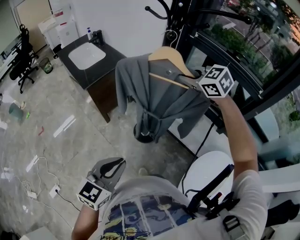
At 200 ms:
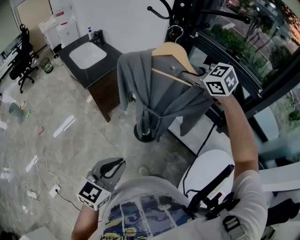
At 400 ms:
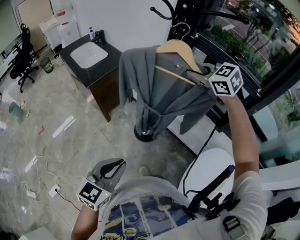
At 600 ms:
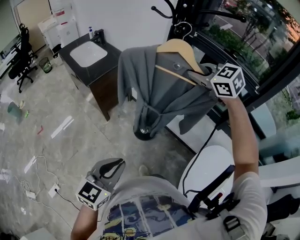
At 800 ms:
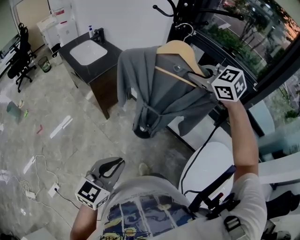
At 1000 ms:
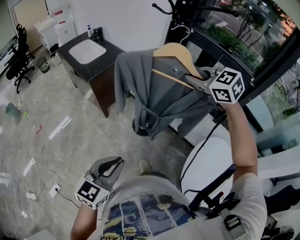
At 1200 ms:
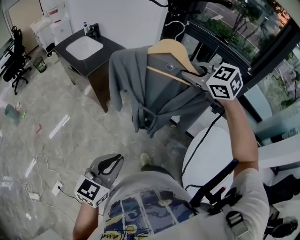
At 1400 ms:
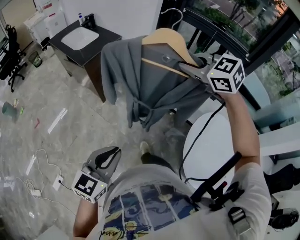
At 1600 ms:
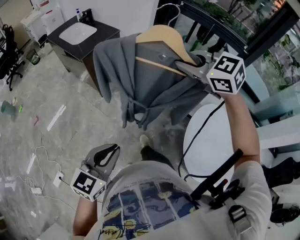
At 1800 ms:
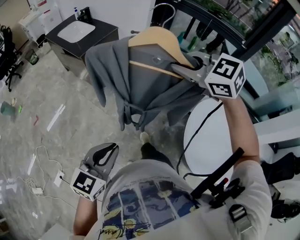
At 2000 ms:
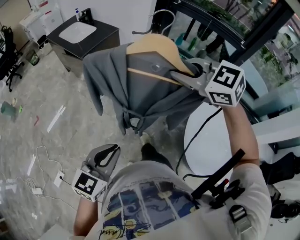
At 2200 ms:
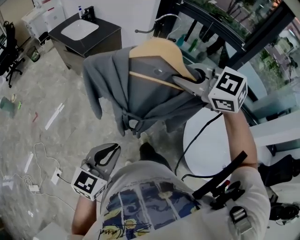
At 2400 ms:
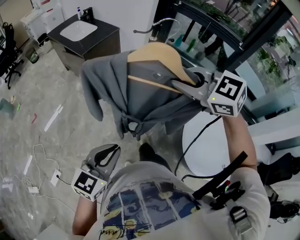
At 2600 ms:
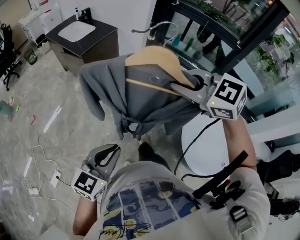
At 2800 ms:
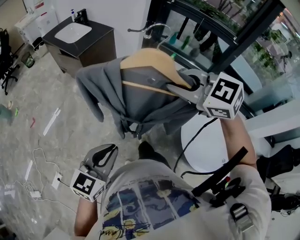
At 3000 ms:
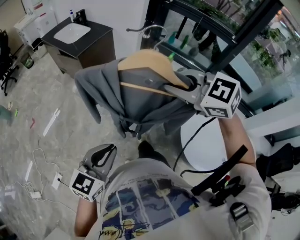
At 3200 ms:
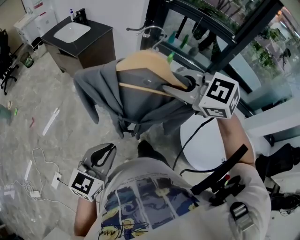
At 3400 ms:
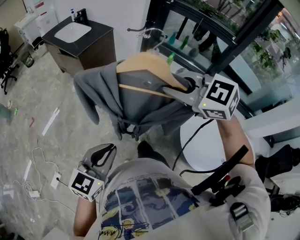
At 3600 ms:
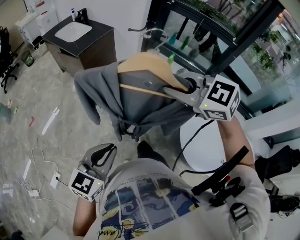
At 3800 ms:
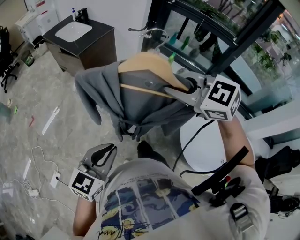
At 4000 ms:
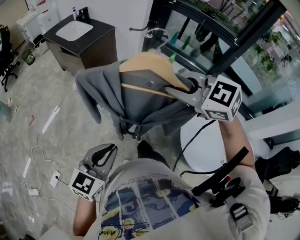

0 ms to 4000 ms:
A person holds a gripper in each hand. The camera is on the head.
0 ms to 1400 ms: The left gripper travels backward and to the left by some 15 cm. Meanwhile the right gripper moves backward, about 20 cm.
1400 ms to 2600 ms: The right gripper travels backward and to the left by approximately 20 cm; the left gripper heads backward, covering some 10 cm.
2600 ms to 4000 ms: The grippers stay close to where they were, moving slightly.

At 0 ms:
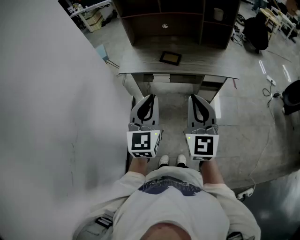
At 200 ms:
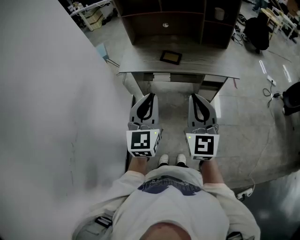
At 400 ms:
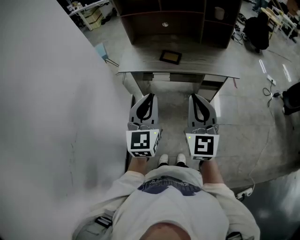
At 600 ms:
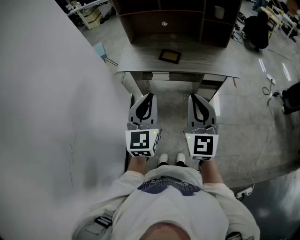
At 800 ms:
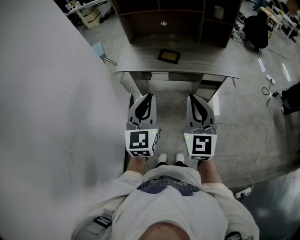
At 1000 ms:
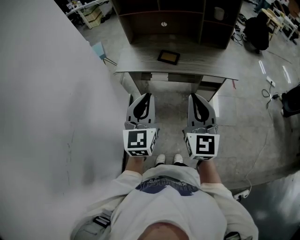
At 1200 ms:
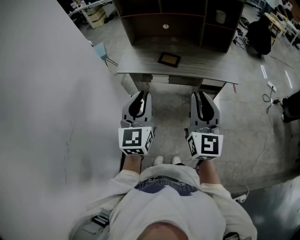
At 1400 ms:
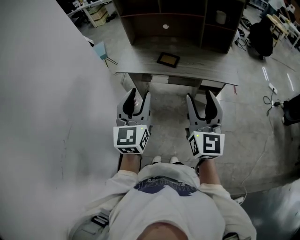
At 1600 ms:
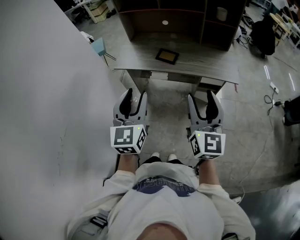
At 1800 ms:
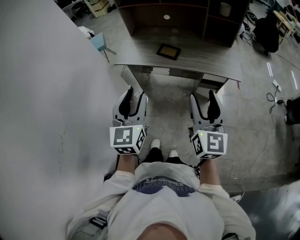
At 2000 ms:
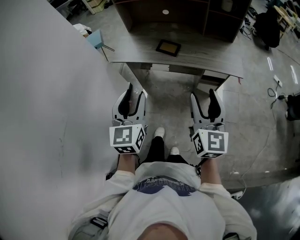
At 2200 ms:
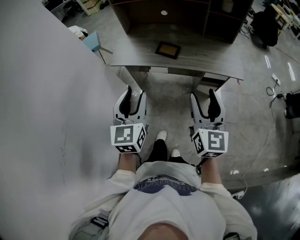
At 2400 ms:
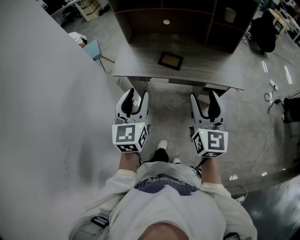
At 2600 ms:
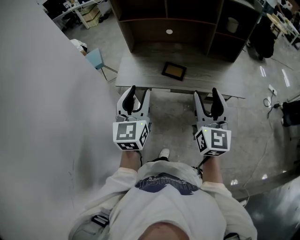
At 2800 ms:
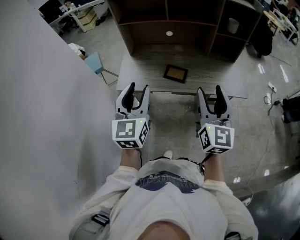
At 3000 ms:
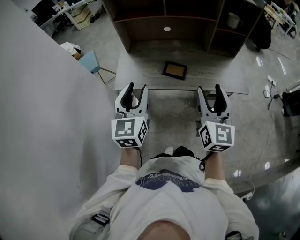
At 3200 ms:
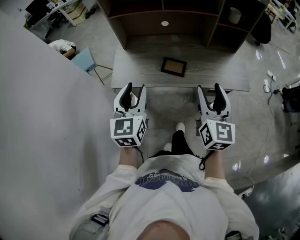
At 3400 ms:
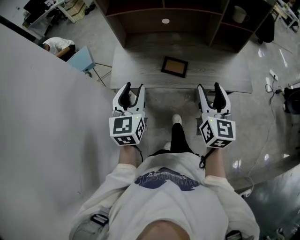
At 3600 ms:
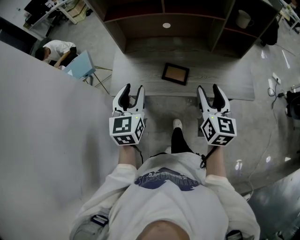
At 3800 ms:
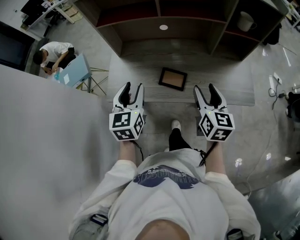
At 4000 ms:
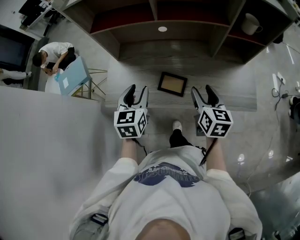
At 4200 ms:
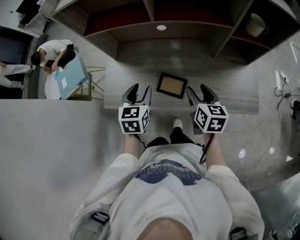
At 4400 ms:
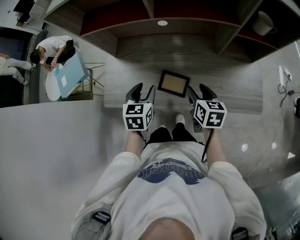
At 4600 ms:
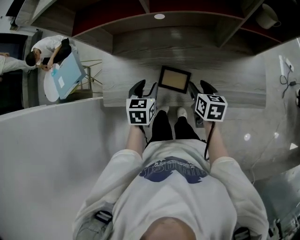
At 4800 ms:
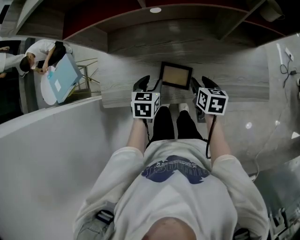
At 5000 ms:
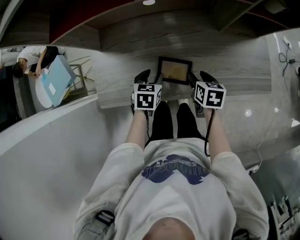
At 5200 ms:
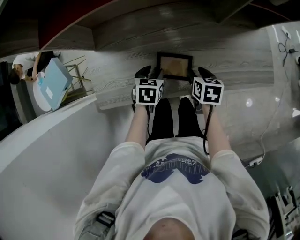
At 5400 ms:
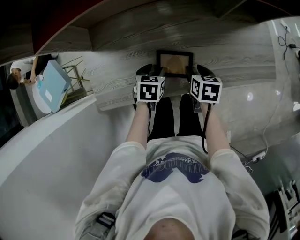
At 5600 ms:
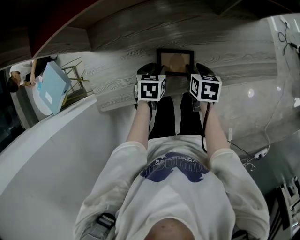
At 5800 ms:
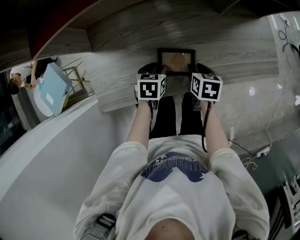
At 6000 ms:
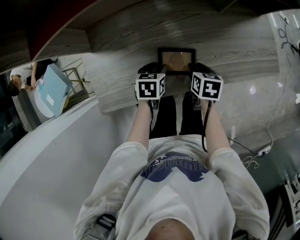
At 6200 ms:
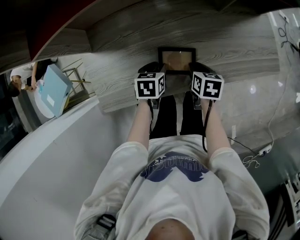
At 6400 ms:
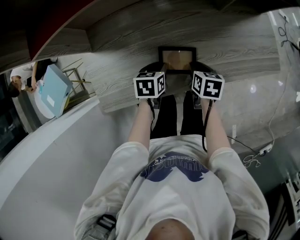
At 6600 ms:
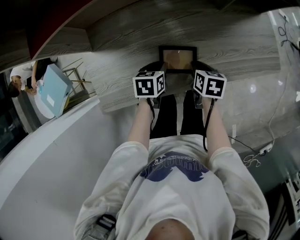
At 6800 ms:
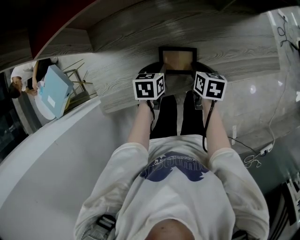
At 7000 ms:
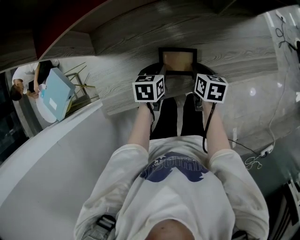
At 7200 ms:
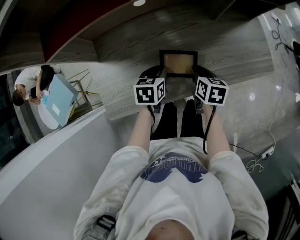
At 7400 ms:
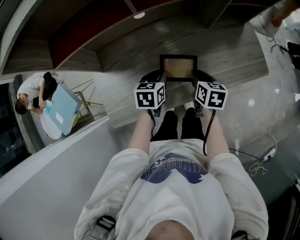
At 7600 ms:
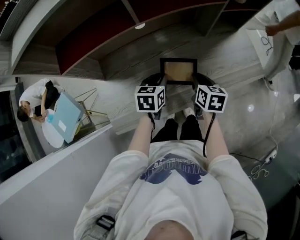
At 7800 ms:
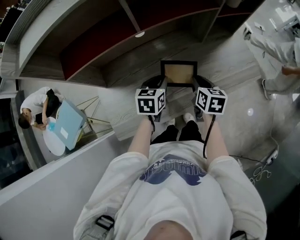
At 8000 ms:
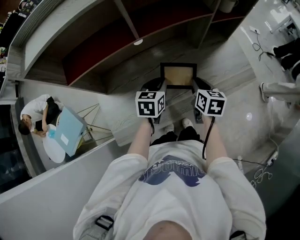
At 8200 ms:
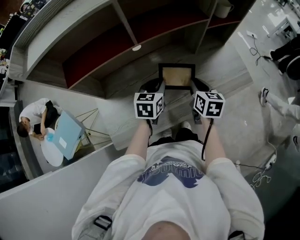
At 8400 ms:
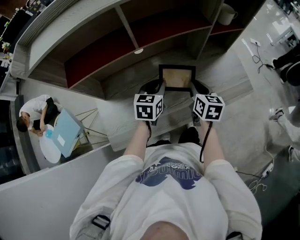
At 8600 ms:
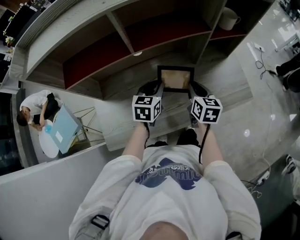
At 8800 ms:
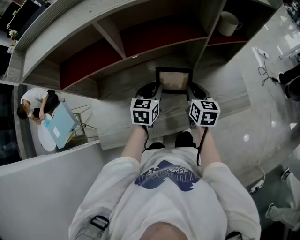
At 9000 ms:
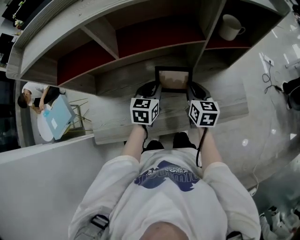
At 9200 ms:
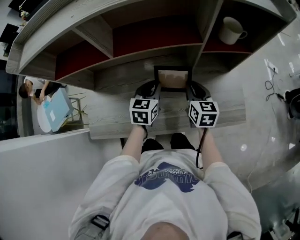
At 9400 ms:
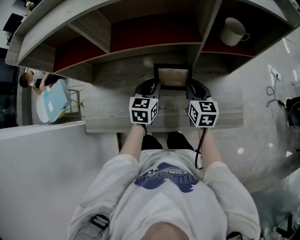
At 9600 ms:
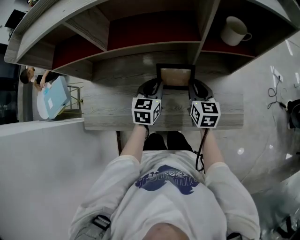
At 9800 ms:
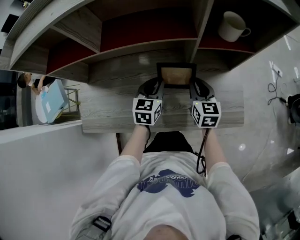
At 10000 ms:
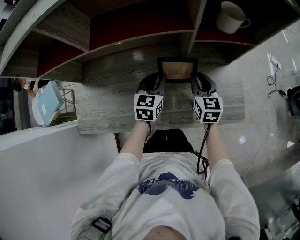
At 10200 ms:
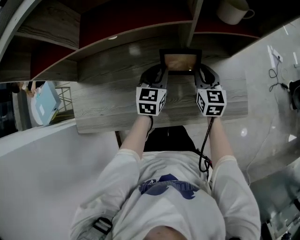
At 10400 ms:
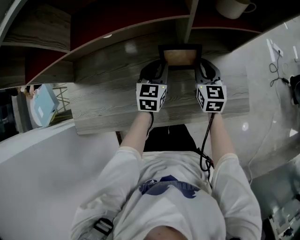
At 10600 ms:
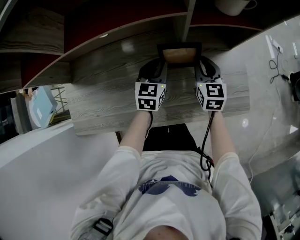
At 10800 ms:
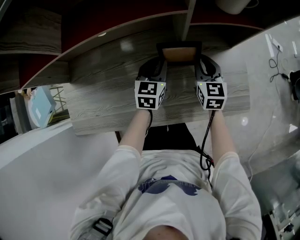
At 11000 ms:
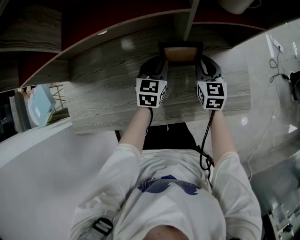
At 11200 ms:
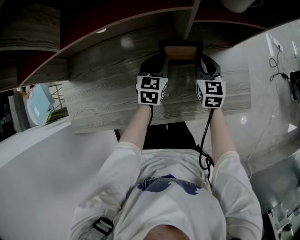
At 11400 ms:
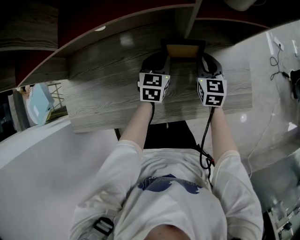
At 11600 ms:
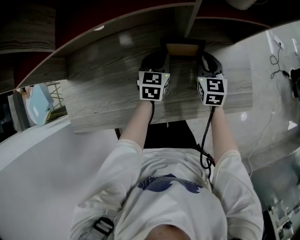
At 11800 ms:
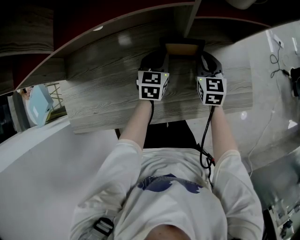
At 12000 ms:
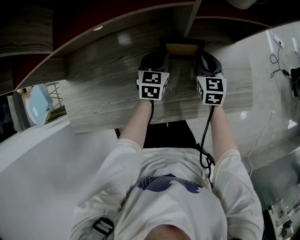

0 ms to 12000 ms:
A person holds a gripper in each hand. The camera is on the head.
0 ms to 1600 ms: The right gripper heads to the right, covering roughly 10 cm, and opens. The left gripper opens up.
1600 ms to 3000 ms: Both grippers travel together forward and to the left, about 25 cm.
3000 ms to 4400 ms: The two grippers go about 35 cm forward and downward. The left gripper points its fingers roughly 30 degrees further downward. Meanwhile the right gripper tilts its fingers approximately 40 degrees downward.
4400 ms to 6000 ms: Both grippers travel together downward, approximately 20 cm. The left gripper rotates approximately 30 degrees; the right gripper turns by approximately 30 degrees, and closes its fingers.
6000 ms to 7600 ms: Both grippers move upward, some 10 cm. The left gripper closes its fingers.
7600 ms to 9000 ms: Both grippers travel together forward, to the right and upward, some 15 cm. The right gripper swivels approximately 20 degrees.
9000 ms to 10400 ms: The right gripper moves to the right, downward and forward, some 15 cm, while the left gripper heads to the right and downward, covering some 15 cm.
10400 ms to 12000 ms: Both grippers move downward, some 5 cm.

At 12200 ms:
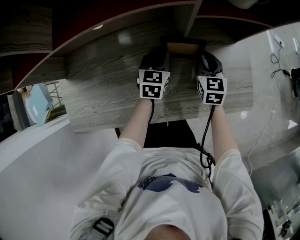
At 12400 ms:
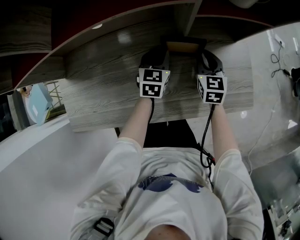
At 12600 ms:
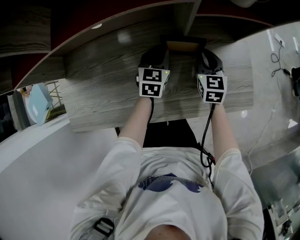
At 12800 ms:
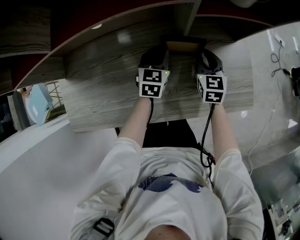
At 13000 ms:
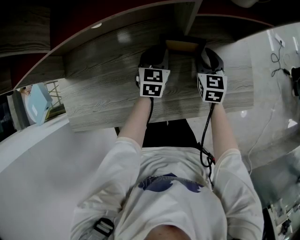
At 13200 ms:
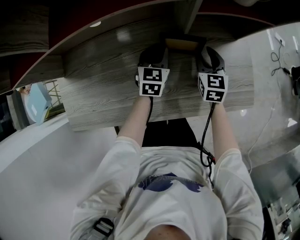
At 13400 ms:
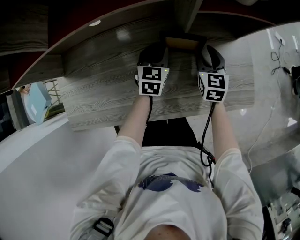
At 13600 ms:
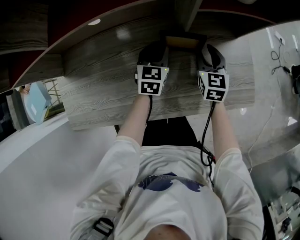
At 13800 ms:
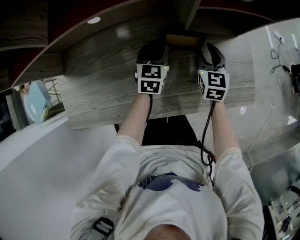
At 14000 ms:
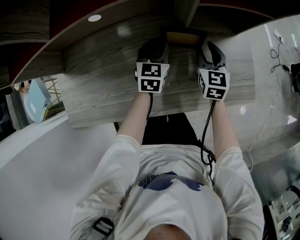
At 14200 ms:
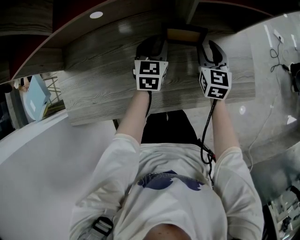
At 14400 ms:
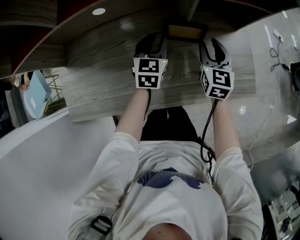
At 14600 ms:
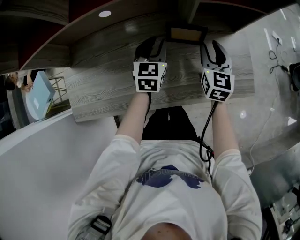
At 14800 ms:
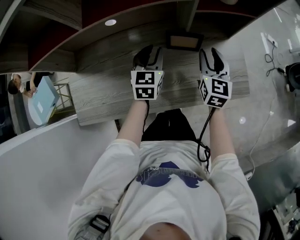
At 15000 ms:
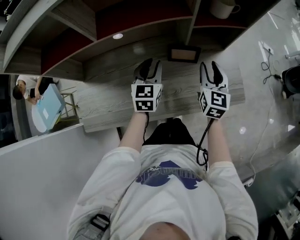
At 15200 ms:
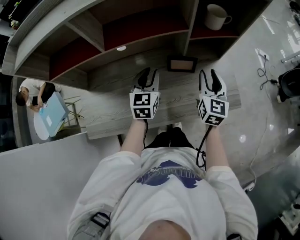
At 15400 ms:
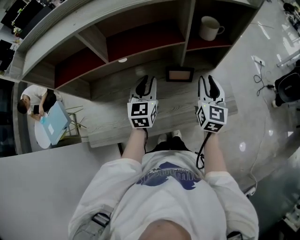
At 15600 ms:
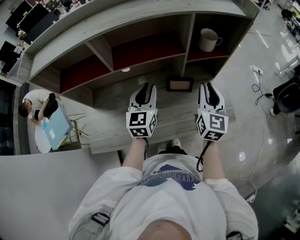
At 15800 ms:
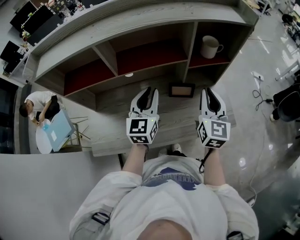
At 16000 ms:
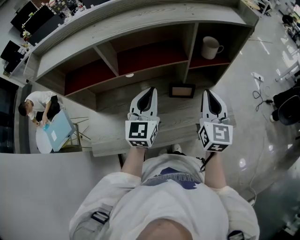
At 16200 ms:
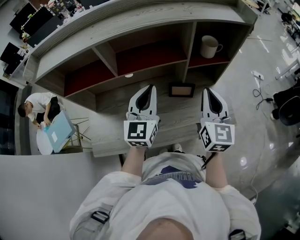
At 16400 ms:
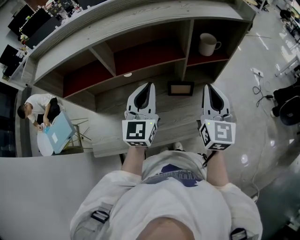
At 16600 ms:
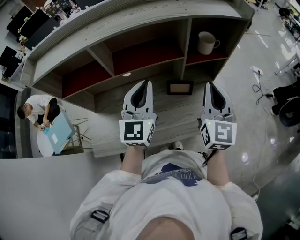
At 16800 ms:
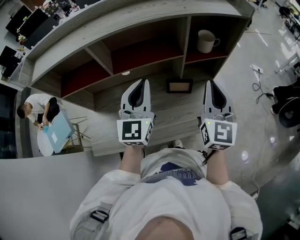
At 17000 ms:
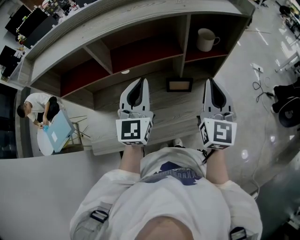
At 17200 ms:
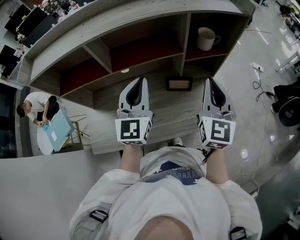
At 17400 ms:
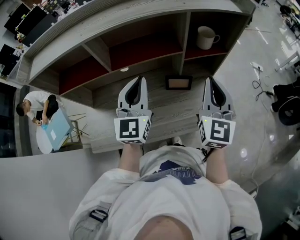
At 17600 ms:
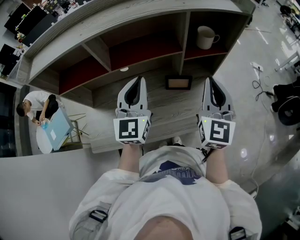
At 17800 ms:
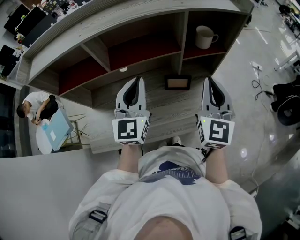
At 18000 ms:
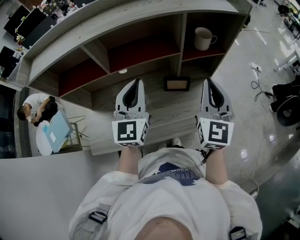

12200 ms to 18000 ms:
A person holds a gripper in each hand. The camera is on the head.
12200 ms to 13600 ms: The right gripper opens up.
13600 ms to 15000 ms: Both grippers move upward and backward, approximately 20 cm.
15000 ms to 16600 ms: Both grippers travel together upward, about 25 cm. The left gripper rotates about 30 degrees. The right gripper closes its fingers.
16600 ms to 18000 ms: There are only small adjustments of the grippers.

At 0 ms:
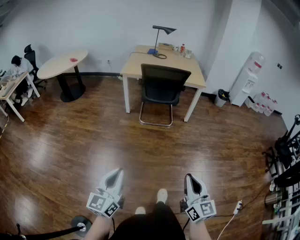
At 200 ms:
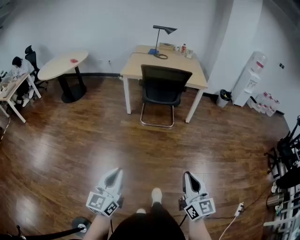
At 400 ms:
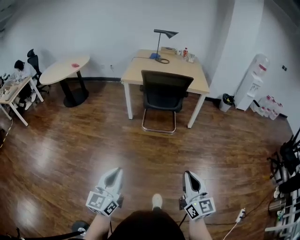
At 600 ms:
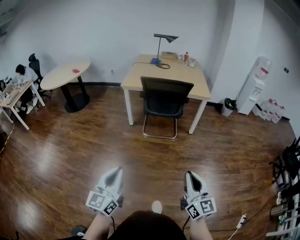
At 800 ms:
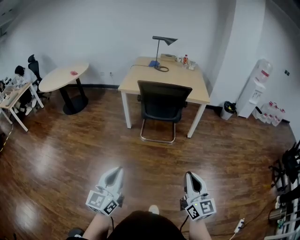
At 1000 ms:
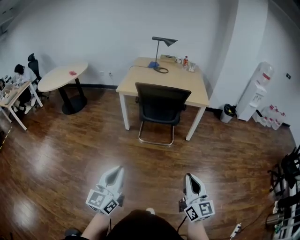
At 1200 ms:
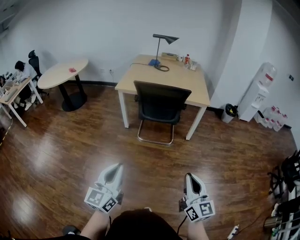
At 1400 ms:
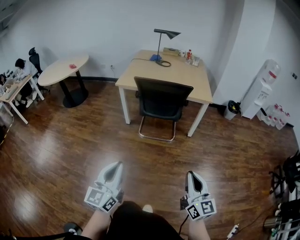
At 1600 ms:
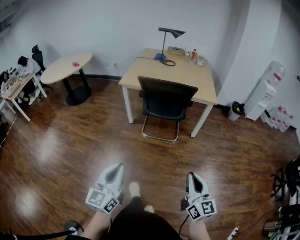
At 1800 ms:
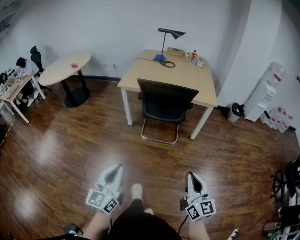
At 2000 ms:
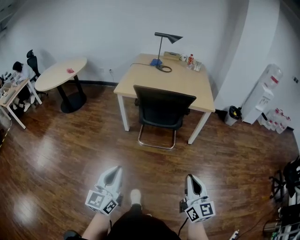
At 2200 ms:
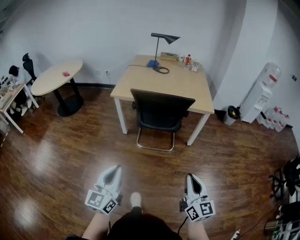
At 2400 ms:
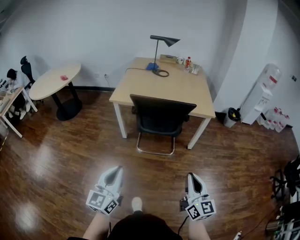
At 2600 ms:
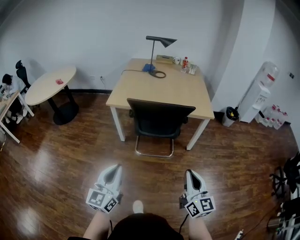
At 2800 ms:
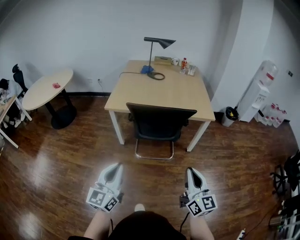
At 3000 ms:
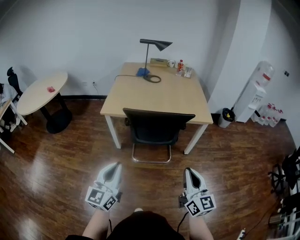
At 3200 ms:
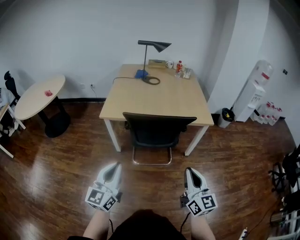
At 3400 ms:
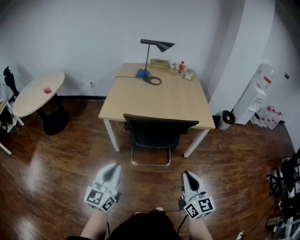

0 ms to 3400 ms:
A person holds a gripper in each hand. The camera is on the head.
0 ms to 1600 ms: The two grippers go about 25 cm forward and to the right.
1600 ms to 3400 ms: Both grippers move forward, roughly 30 cm.
